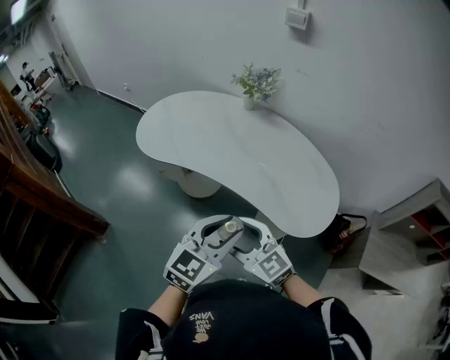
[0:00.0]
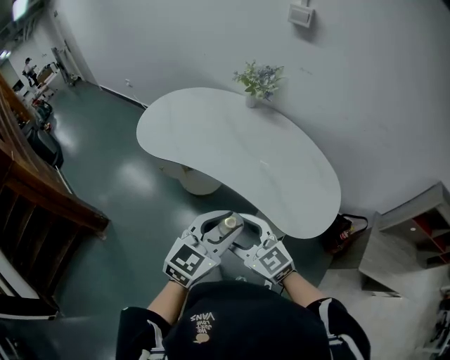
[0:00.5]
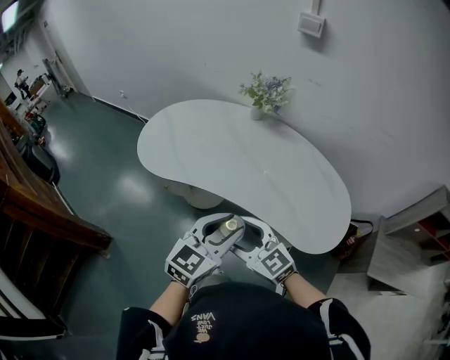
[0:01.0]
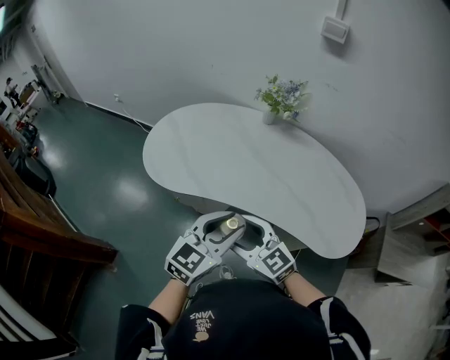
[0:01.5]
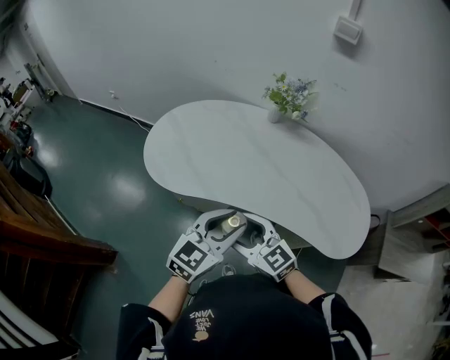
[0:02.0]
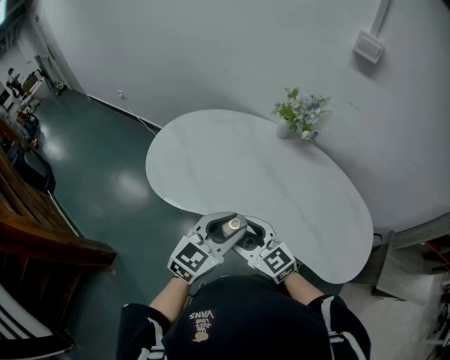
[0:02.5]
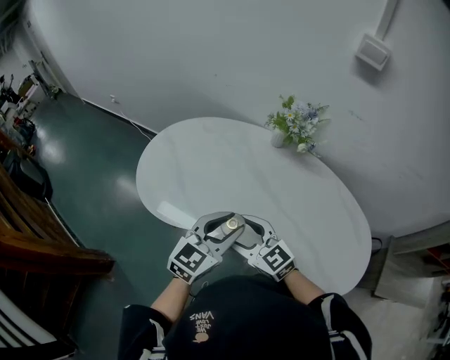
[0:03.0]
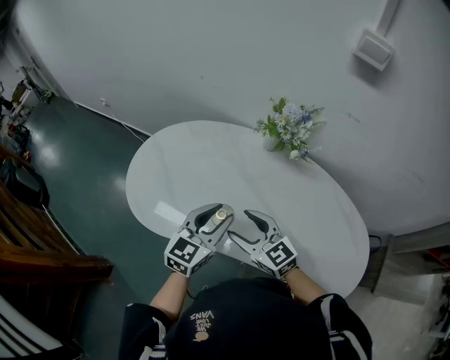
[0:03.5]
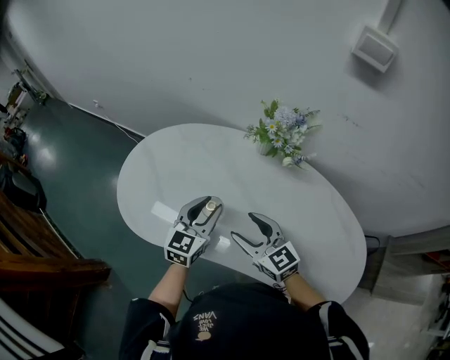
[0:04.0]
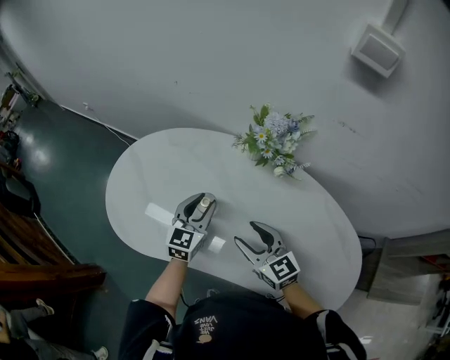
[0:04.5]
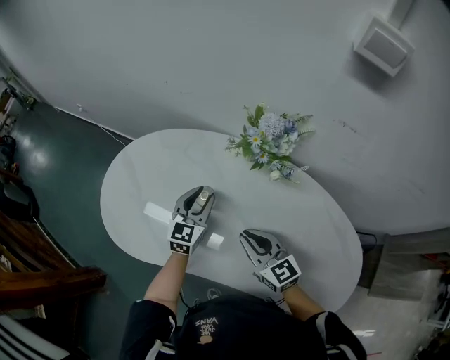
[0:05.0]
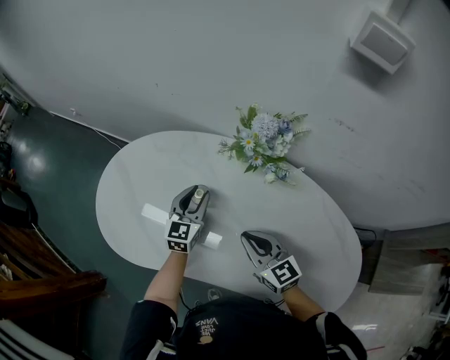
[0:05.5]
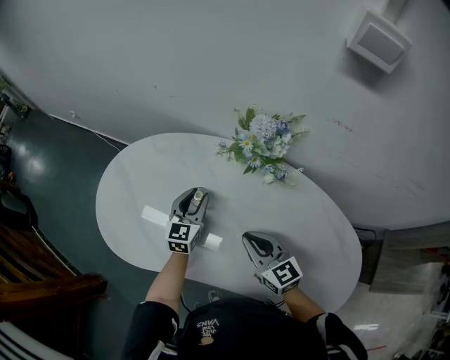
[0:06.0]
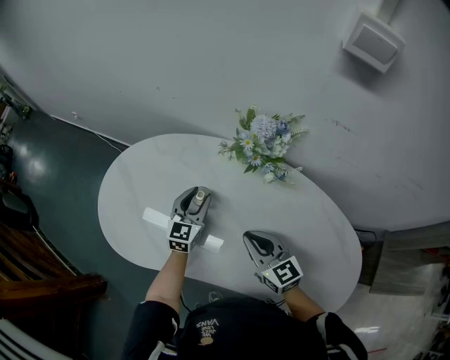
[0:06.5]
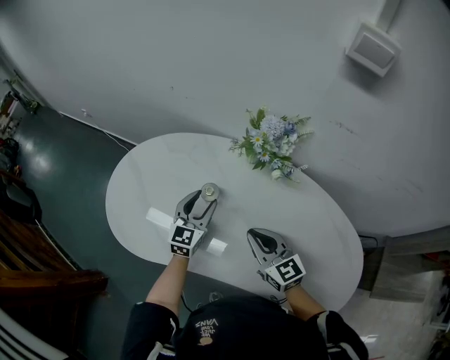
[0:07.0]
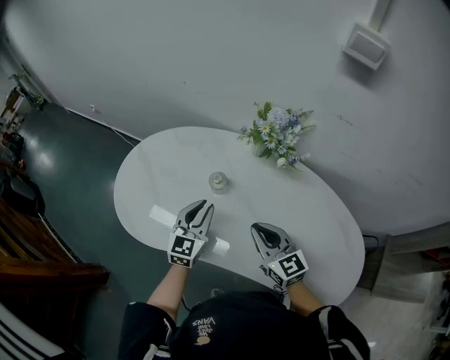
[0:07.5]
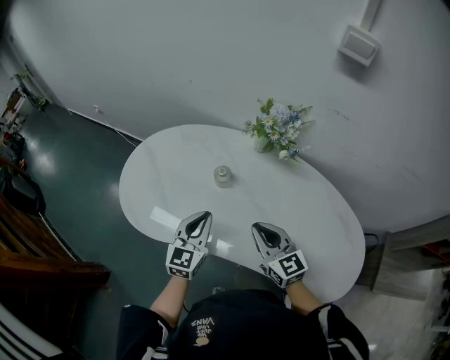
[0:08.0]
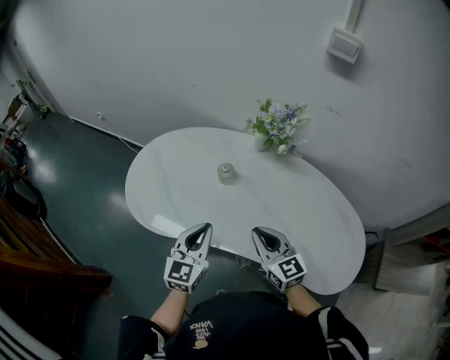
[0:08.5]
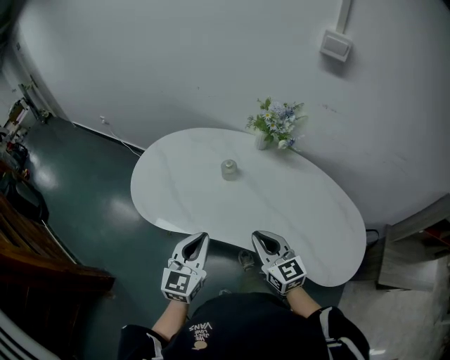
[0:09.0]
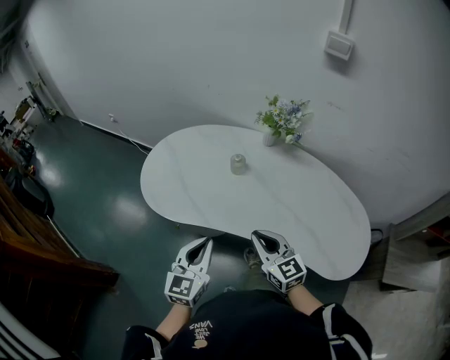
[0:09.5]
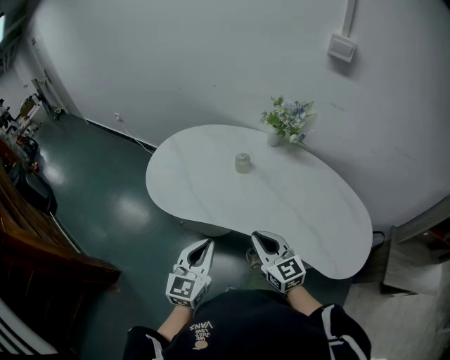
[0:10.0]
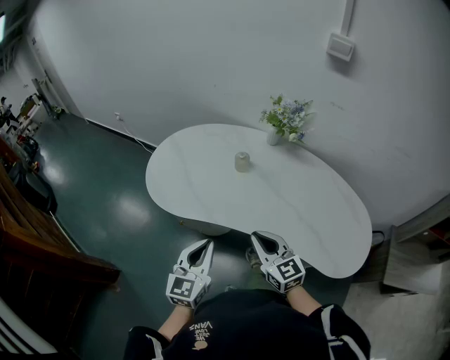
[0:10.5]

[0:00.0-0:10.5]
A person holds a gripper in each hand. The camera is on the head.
0:00.0 to 0:02.0: The grippers both shift forward and to the left by roughly 30 cm.
0:02.0 to 0:04.0: The right gripper goes approximately 30 cm forward and to the right. Meanwhile the left gripper moves forward, some 30 cm.
0:04.0 to 0:06.5: The left gripper is displaced forward and downward by about 15 cm, while the right gripper moves to the right, some 10 cm, and closes its fingers.
0:06.5 to 0:08.5: The left gripper travels backward and upward by approximately 30 cm, and closes. The right gripper shifts roughly 15 cm backward and to the left.
0:08.5 to 0:10.5: Both grippers move backward and to the left, approximately 15 cm.

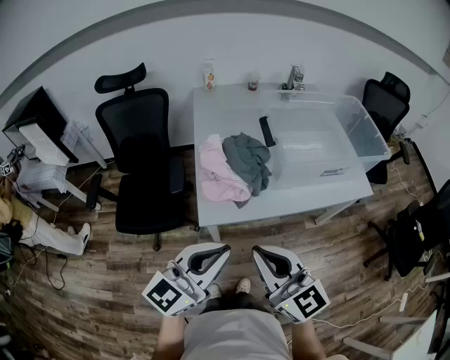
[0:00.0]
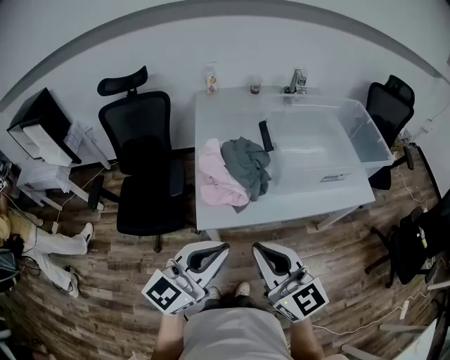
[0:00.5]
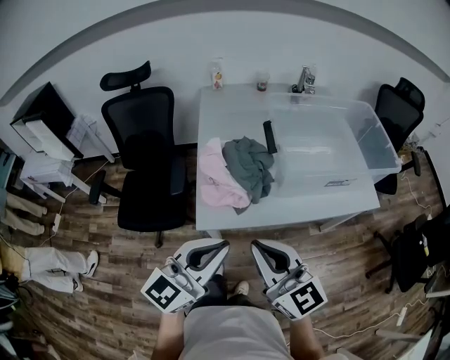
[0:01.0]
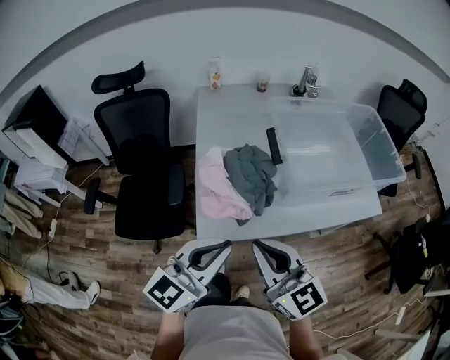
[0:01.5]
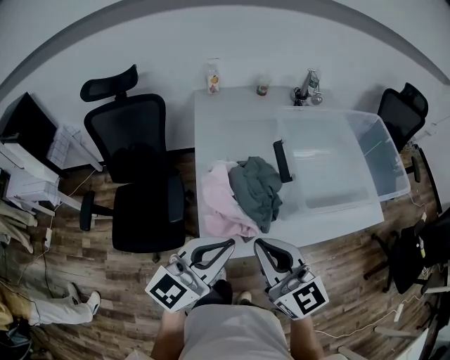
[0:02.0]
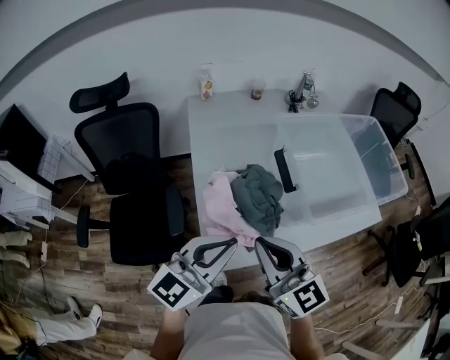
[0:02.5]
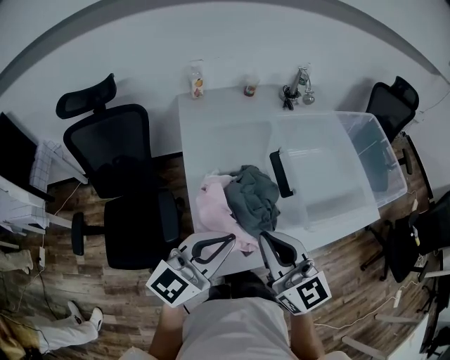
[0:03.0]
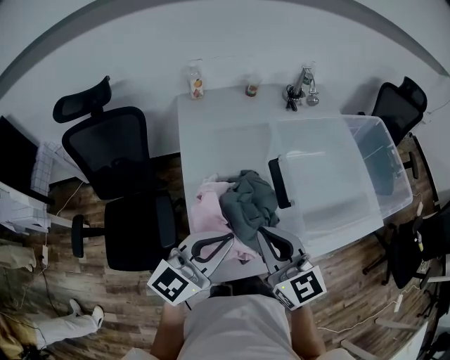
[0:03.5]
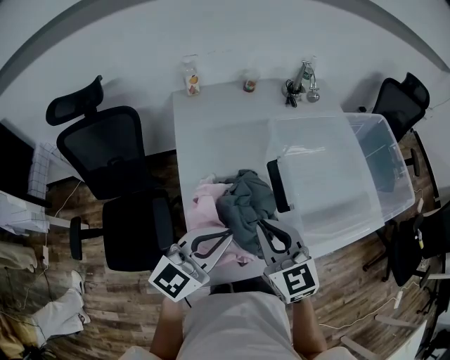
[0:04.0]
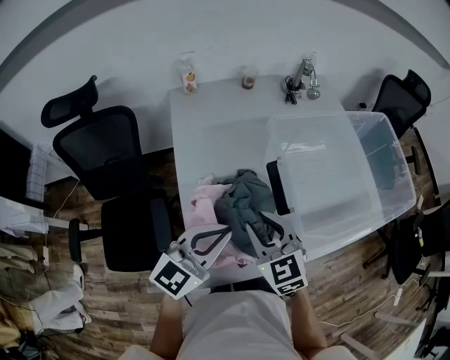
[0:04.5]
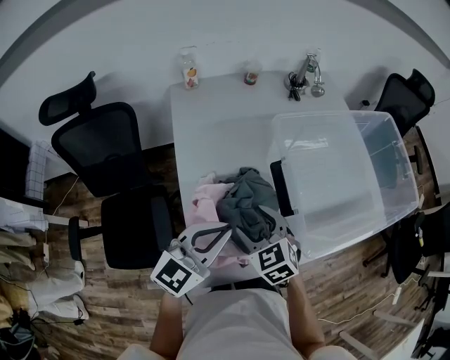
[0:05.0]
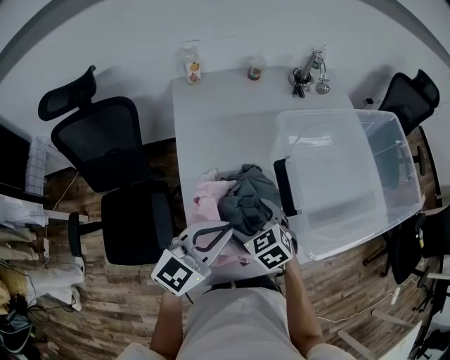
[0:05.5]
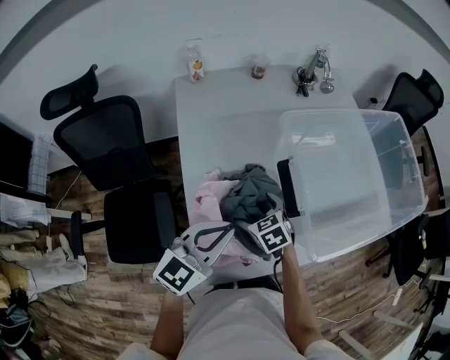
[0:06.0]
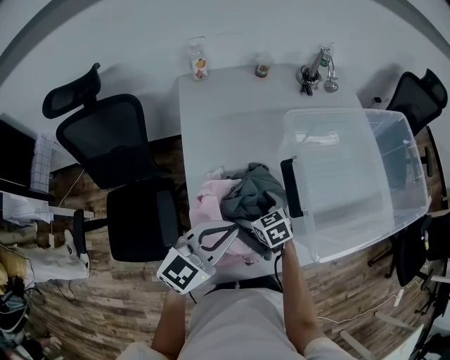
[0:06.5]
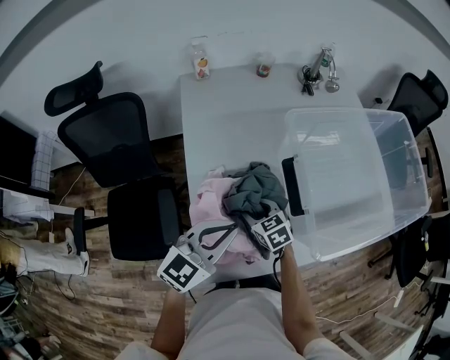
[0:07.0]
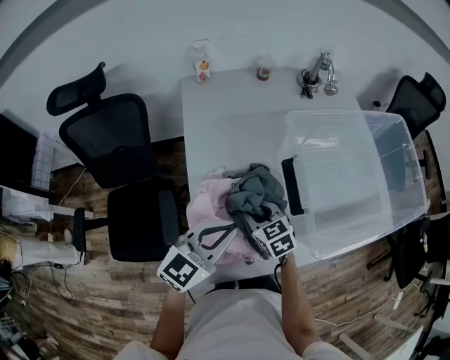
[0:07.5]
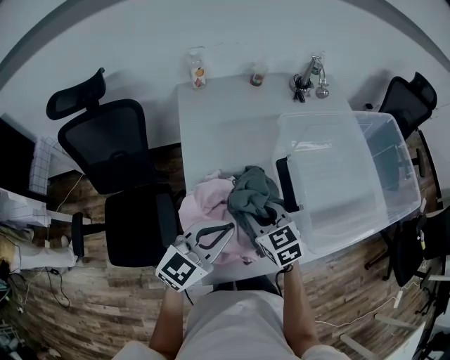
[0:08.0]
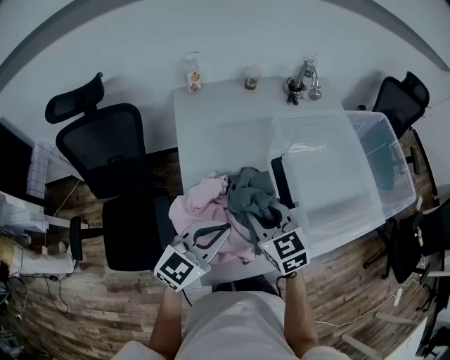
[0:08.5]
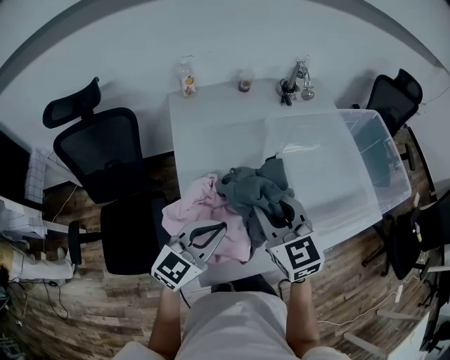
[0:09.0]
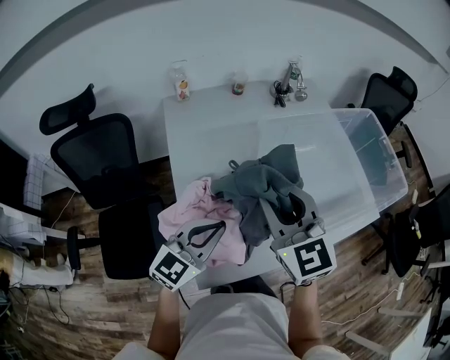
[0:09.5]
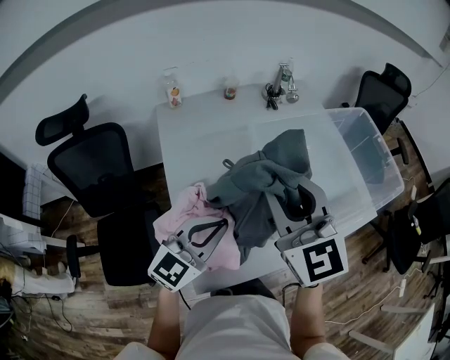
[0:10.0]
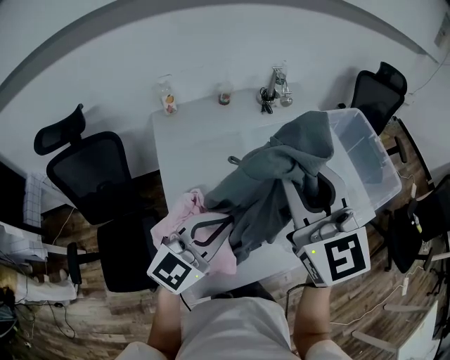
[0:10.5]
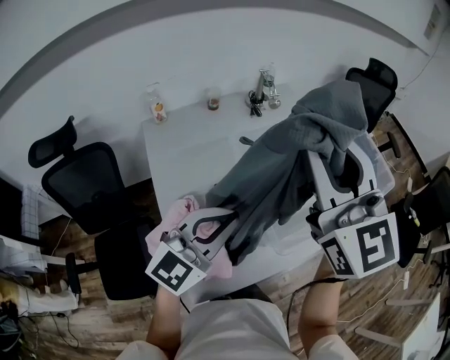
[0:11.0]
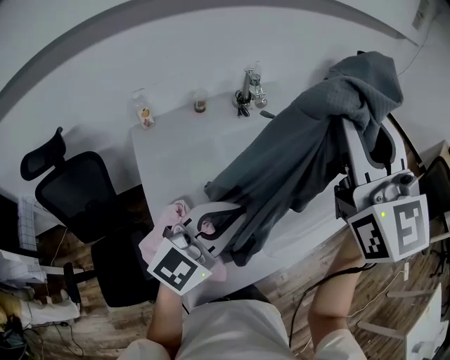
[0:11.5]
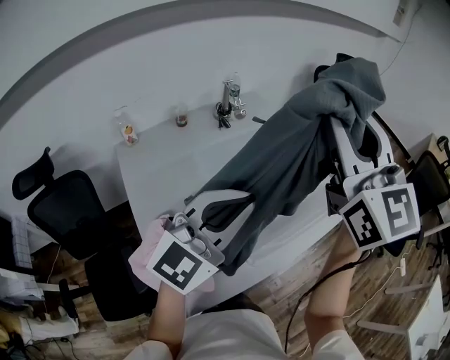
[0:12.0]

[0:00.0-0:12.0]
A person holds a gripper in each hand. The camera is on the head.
0:00.0 to 0:02.0: Both grippers travel together forward, roughly 20 cm.
0:02.0 to 0:04.0: The grippers both shift forward by roughly 20 cm. The right gripper swivels approximately 20 degrees.
0:04.0 to 0:06.0: The left gripper ends up some 5 cm from where it was; the right gripper goes about 20 cm downward, angles its fingers downward, by roughly 30 degrees, and opens up.
0:06.0 to 0:08.0: The right gripper travels upward by about 10 cm, and closes.
0:08.0 to 0:10.0: The left gripper travels upward by about 5 cm. Meanwhile the right gripper travels upward by approximately 25 cm, and swivels about 30 degrees.
0:10.0 to 0:12.0: The two grippers go roughly 25 cm upward, to the right and forward. The left gripper swivels roughly 30 degrees; the right gripper rotates about 30 degrees.

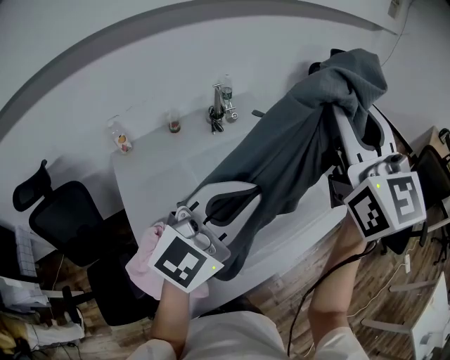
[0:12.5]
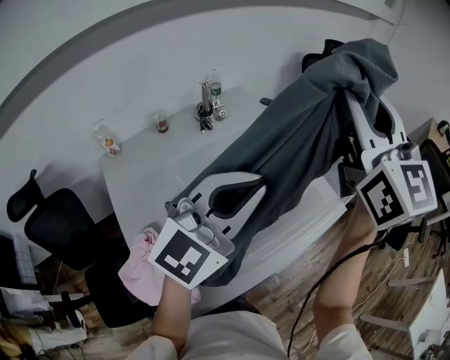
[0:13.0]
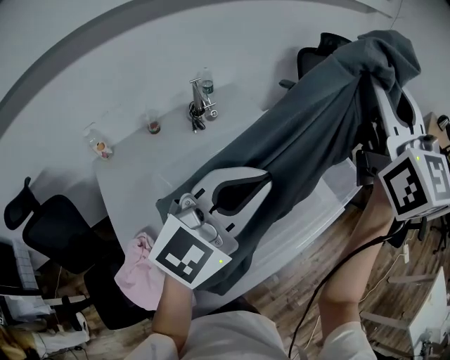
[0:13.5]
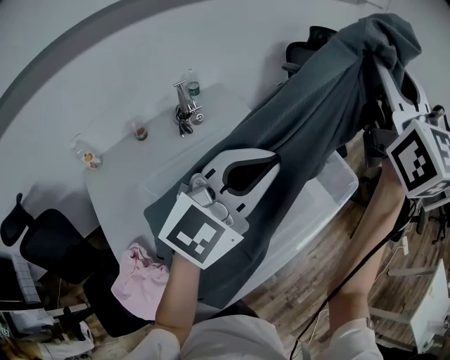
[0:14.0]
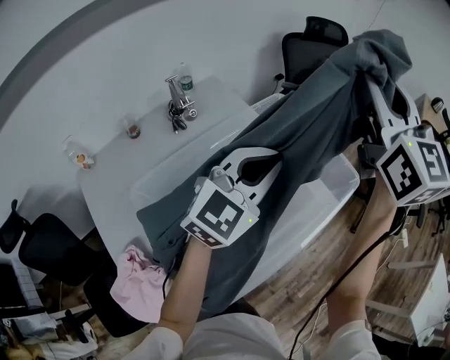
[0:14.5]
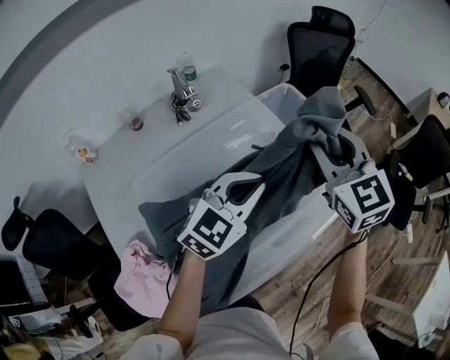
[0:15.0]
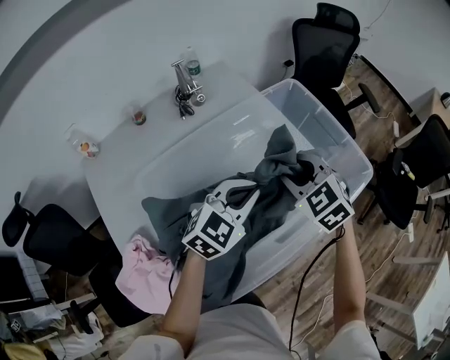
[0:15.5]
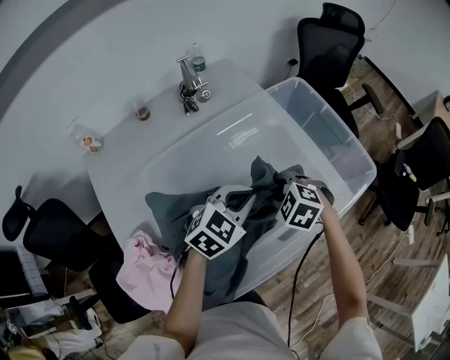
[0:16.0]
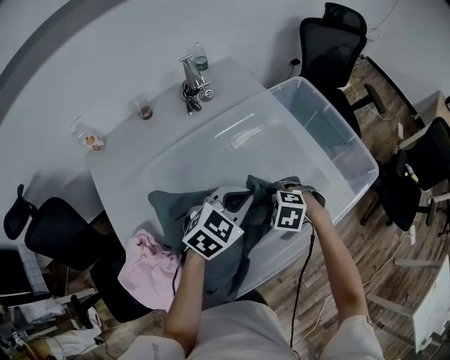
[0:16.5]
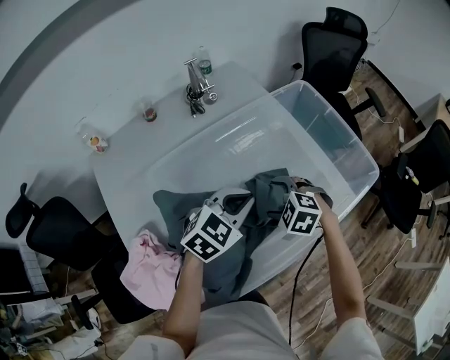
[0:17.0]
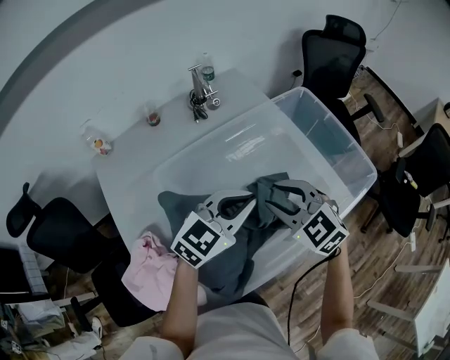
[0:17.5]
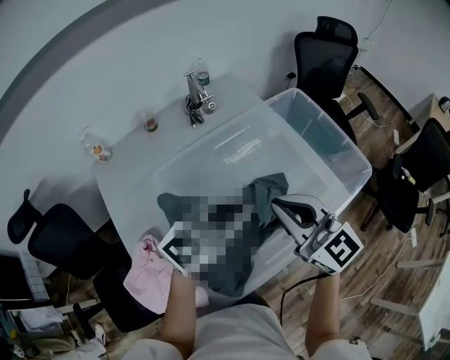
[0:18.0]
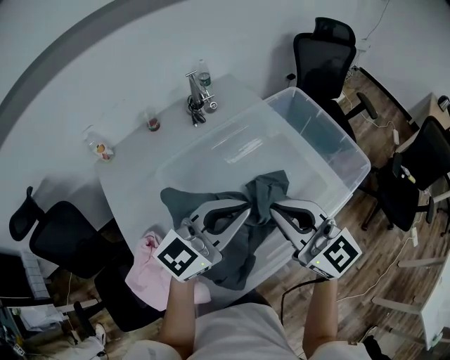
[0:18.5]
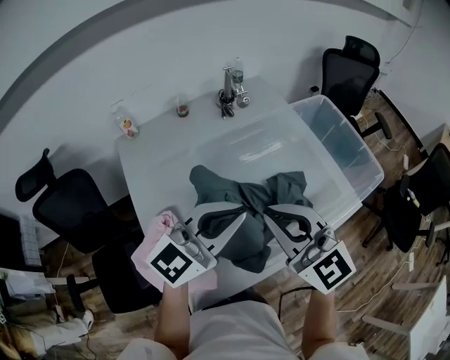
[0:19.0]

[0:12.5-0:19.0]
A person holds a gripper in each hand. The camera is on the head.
0:12.5 to 0:14.5: The grippers both shift forward and to the right by about 25 cm.
0:14.5 to 0:17.0: The left gripper shifts approximately 20 cm downward, and turns by some 30 degrees. The right gripper travels downward by about 50 cm, points its fingers some 70 degrees further downward, and opens.
0:17.0 to 0:19.0: The two grippers go roughly 30 cm upward, backward and to the left. The left gripper tips its fingers upward by some 30 degrees; the right gripper points its fingers roughly 60 degrees further upward, and closes.
